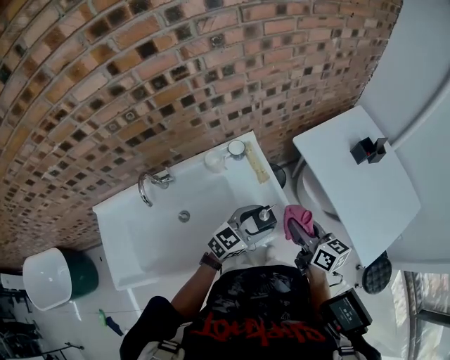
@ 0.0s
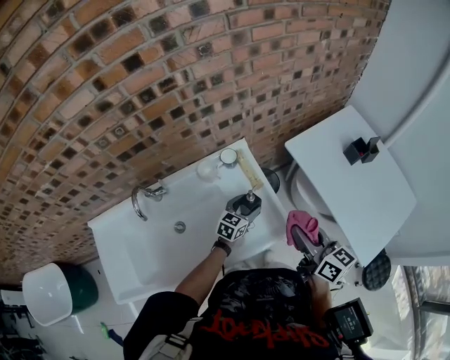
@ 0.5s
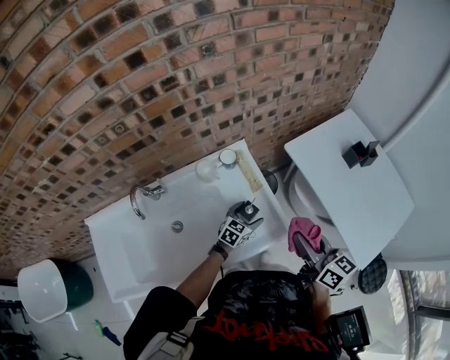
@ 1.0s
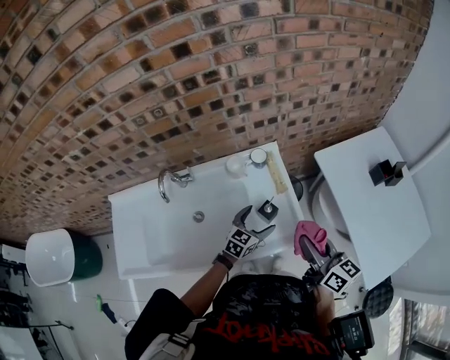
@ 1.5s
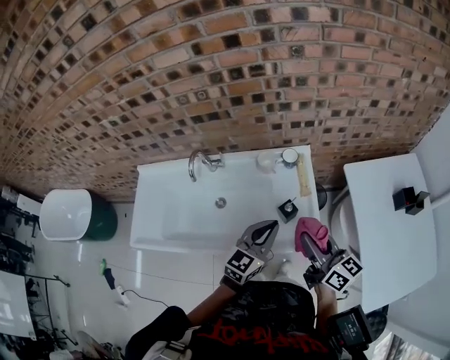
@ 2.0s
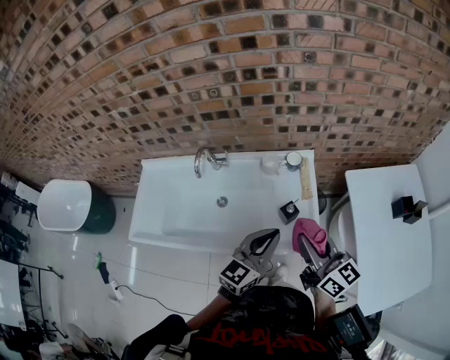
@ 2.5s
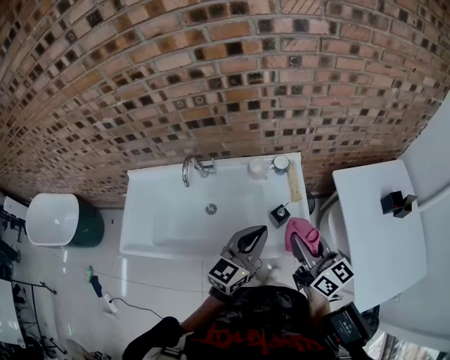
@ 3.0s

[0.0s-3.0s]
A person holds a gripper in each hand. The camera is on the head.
0.0s to 1.5s: The left gripper heads downward and to the left, covering approximately 10 cm, and turns by roughly 30 degrees; the right gripper moves upward, roughly 5 cm.
1.5s to 3.0s: The left gripper shifts some 25 cm upward, swivels some 30 degrees, and closes; the right gripper travels upward and to the left by approximately 10 cm.

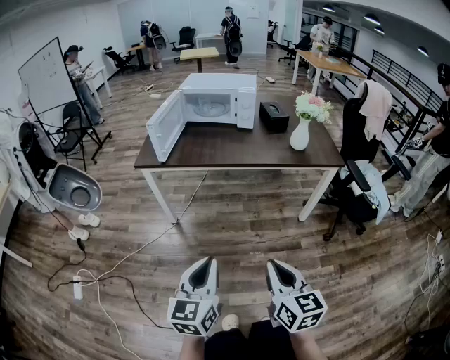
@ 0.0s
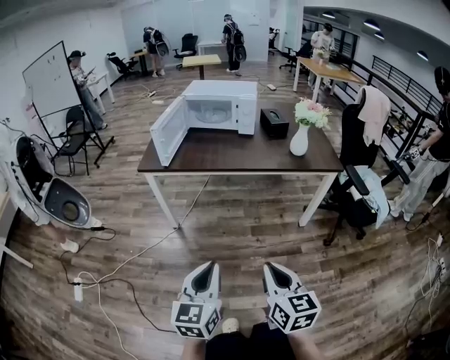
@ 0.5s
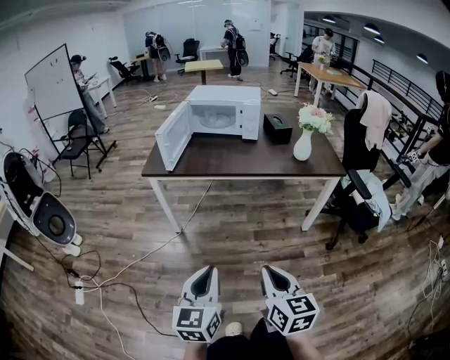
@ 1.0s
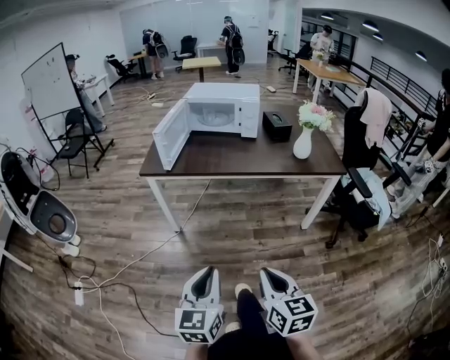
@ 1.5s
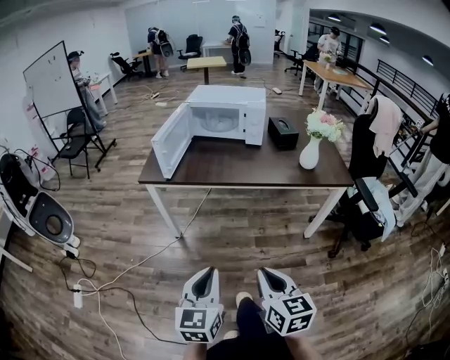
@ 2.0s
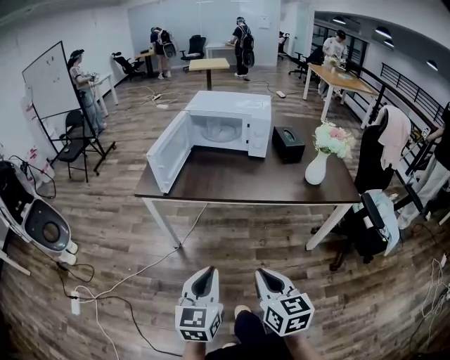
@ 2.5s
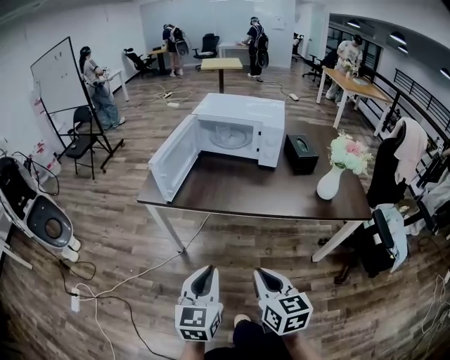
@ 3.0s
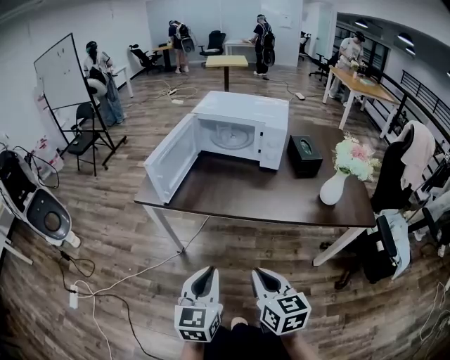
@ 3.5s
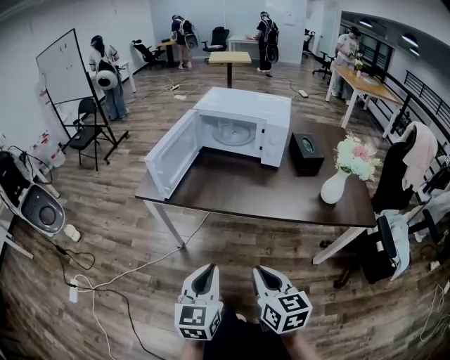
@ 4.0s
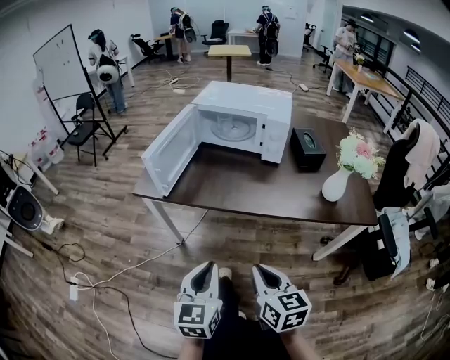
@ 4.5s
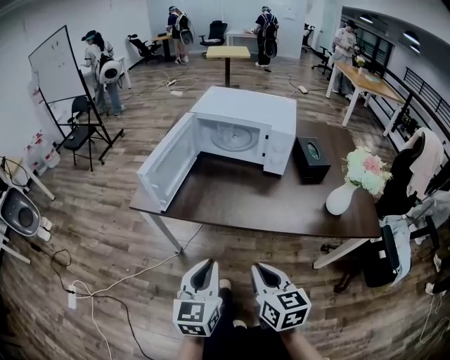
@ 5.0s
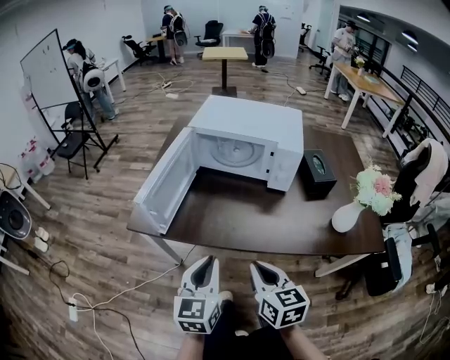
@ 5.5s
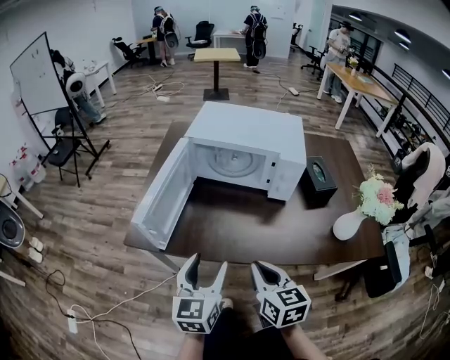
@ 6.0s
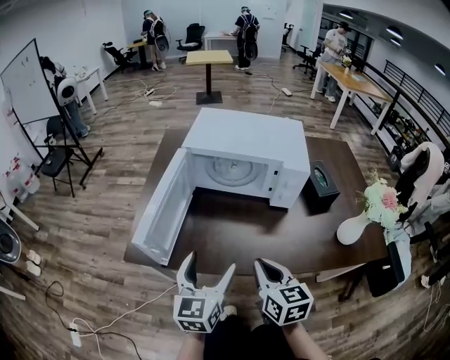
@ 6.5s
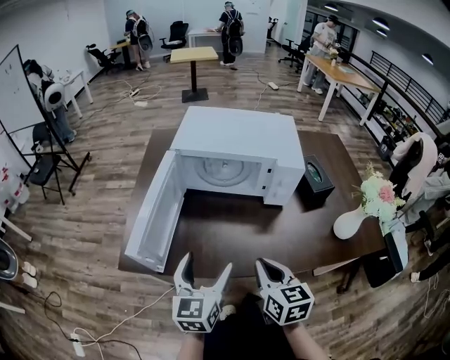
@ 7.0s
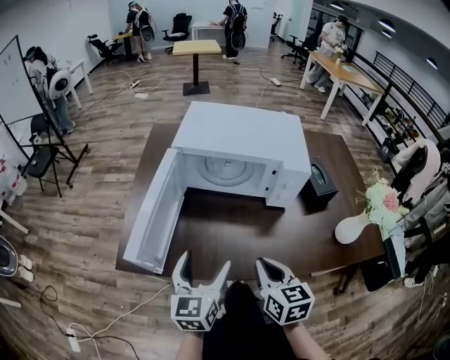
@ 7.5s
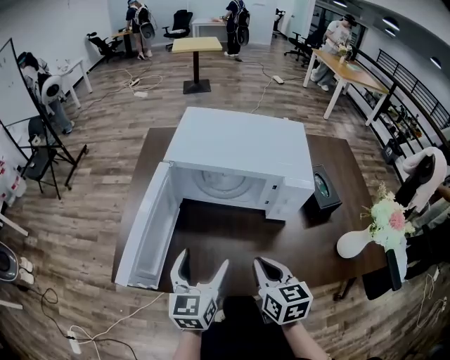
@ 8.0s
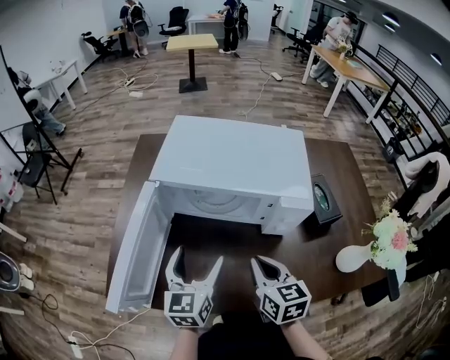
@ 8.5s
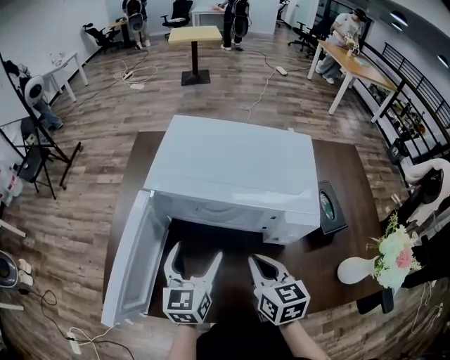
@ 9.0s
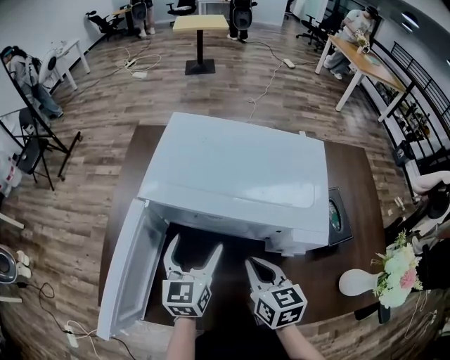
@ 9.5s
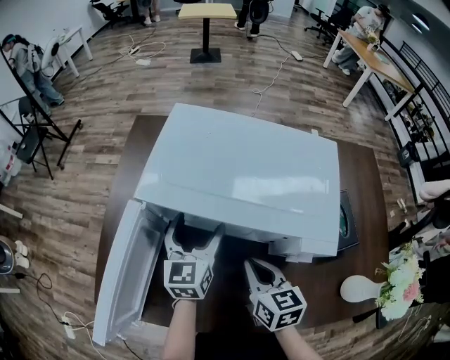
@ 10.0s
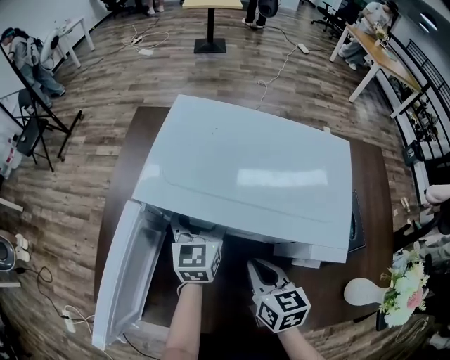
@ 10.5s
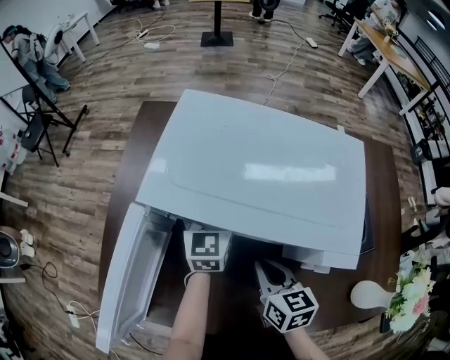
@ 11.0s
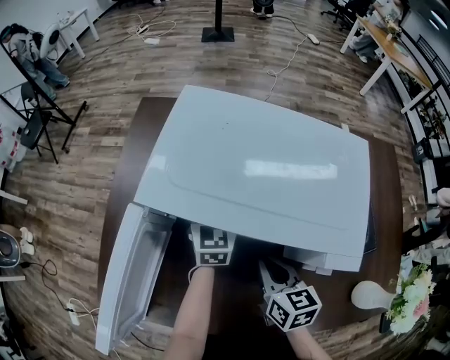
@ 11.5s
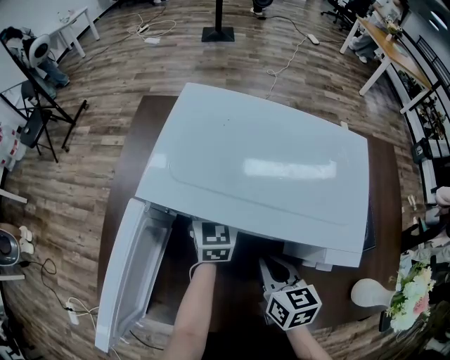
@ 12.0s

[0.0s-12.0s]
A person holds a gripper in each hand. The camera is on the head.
0.0s to 2.0s: The two grippers go about 5 cm forward.
2.0s to 4.0s: Both grippers travel together forward, some 20 cm.
4.0s to 6.0s: The two grippers go about 25 cm forward. The left gripper opens.
6.0s to 8.0s: Both grippers move forward, about 15 cm. The left gripper opens.
8.0s to 10.0s: The grippers both shift forward by some 20 cm.
10.0s to 12.0s: The left gripper travels forward by roughly 10 cm.

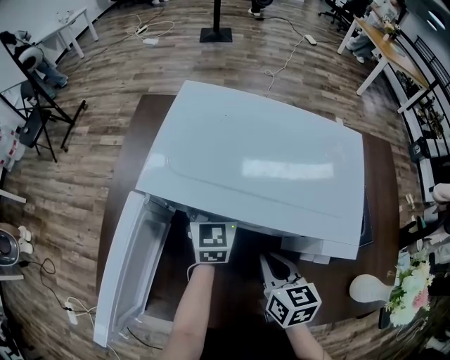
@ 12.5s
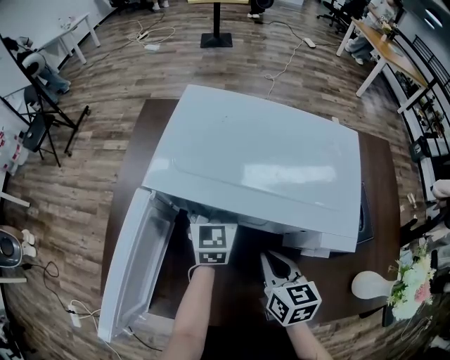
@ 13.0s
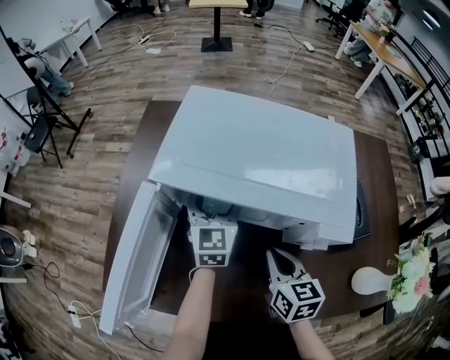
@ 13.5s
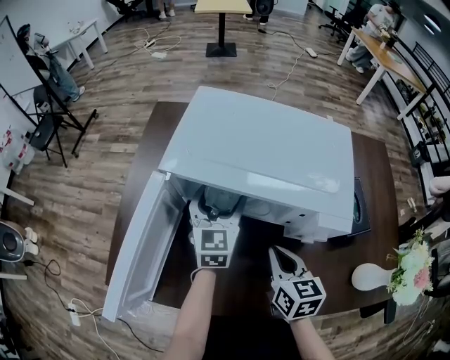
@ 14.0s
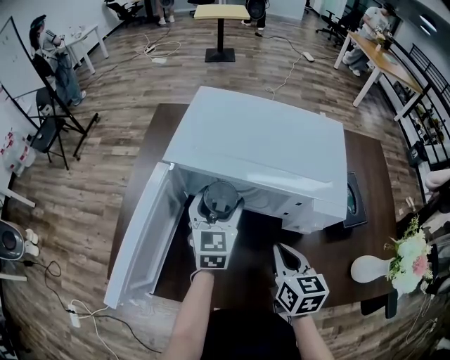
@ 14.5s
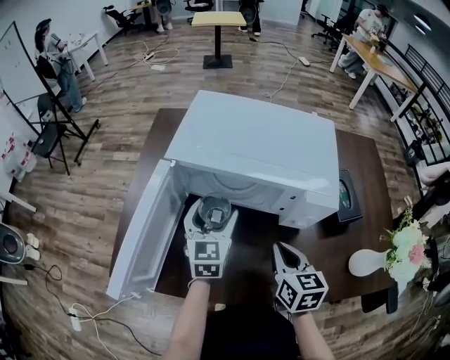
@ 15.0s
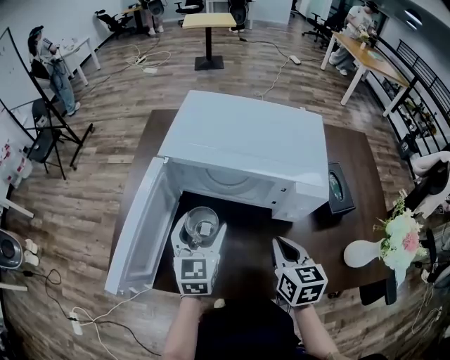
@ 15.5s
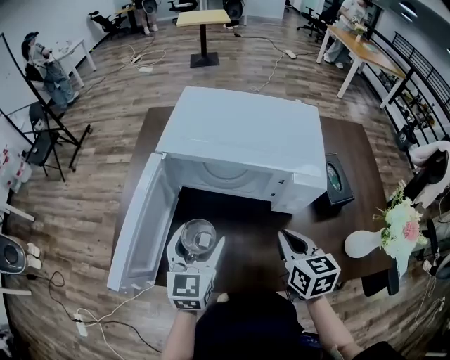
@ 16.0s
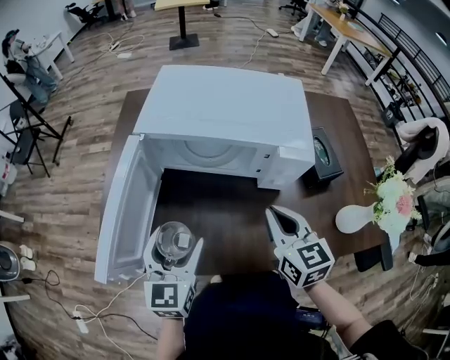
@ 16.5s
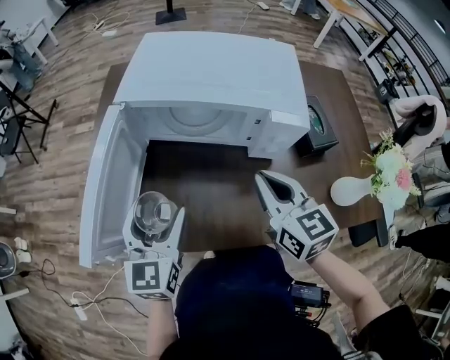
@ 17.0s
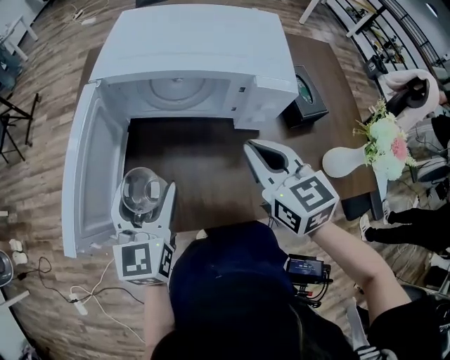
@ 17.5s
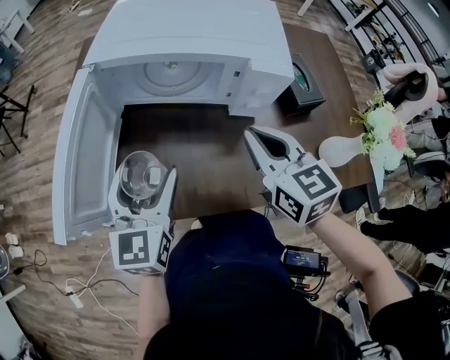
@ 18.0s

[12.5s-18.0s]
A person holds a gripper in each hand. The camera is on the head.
12.5s to 14.5s: The left gripper travels backward by some 10 cm. The right gripper travels backward by about 5 cm.
14.5s to 16.0s: The right gripper shifts by roughly 5 cm, while the left gripper heads backward, covering roughly 15 cm.
16.0s to 18.0s: The grippers stay close to where they were, moving slightly.

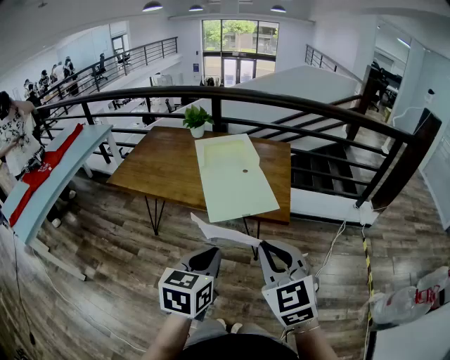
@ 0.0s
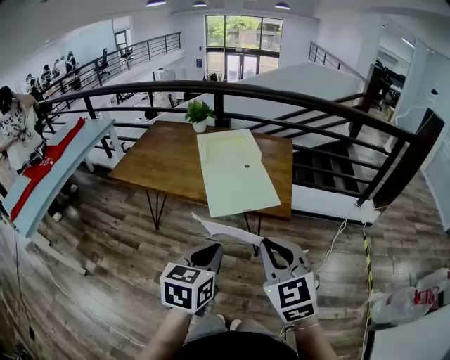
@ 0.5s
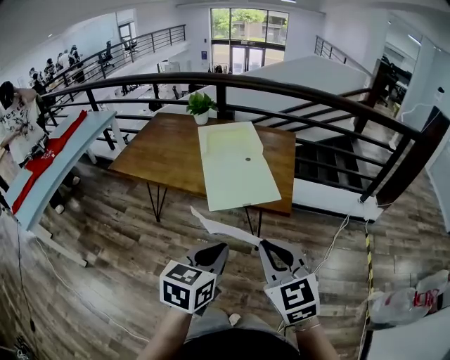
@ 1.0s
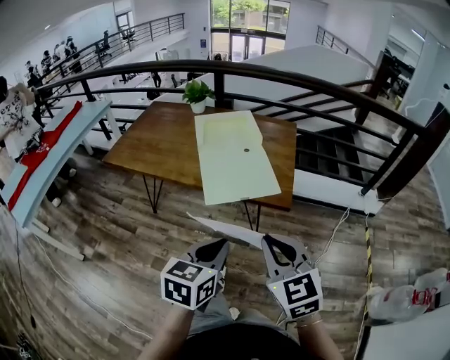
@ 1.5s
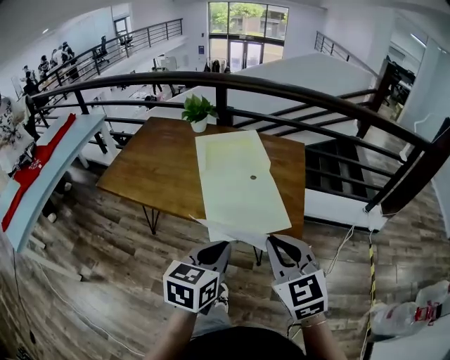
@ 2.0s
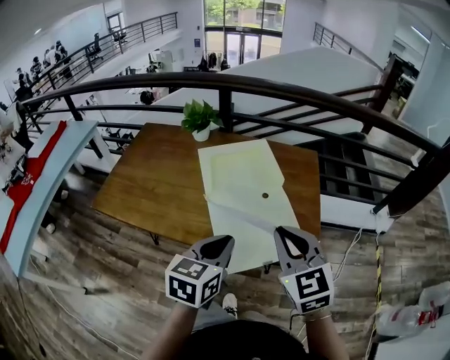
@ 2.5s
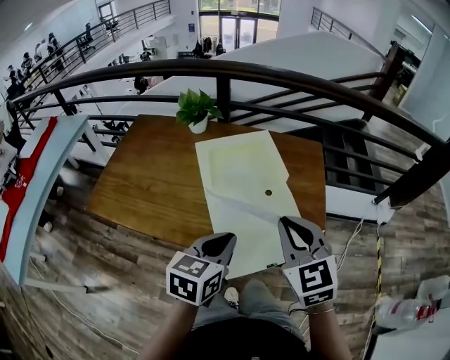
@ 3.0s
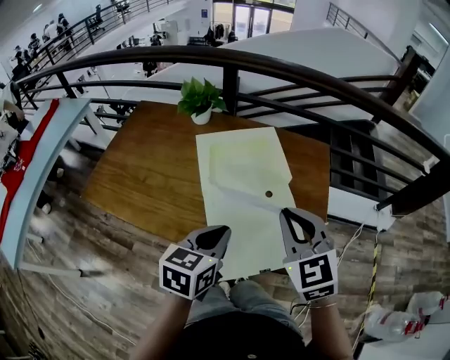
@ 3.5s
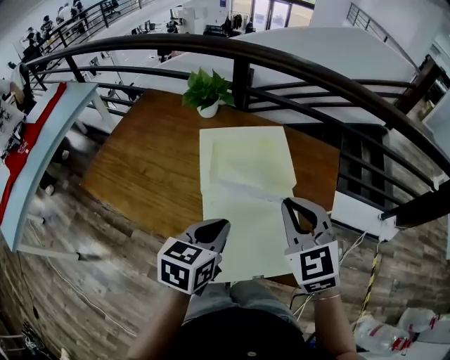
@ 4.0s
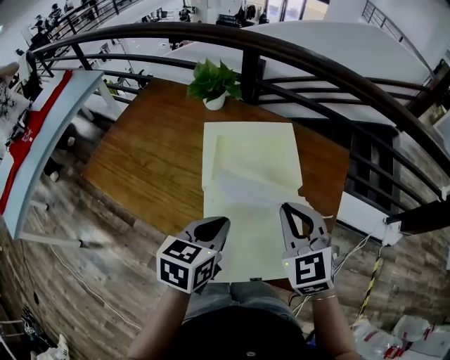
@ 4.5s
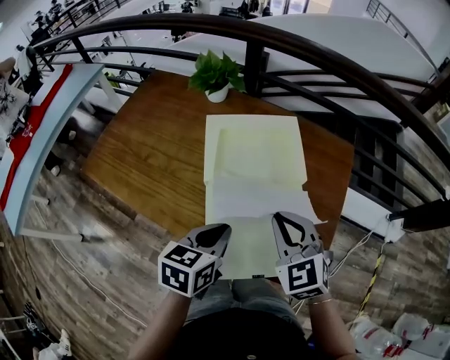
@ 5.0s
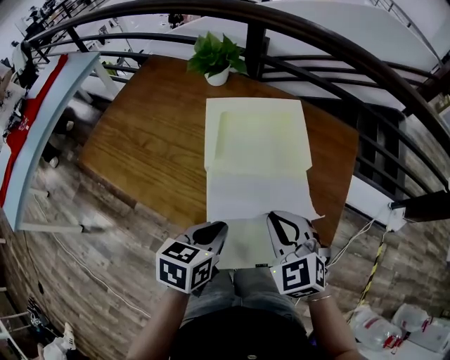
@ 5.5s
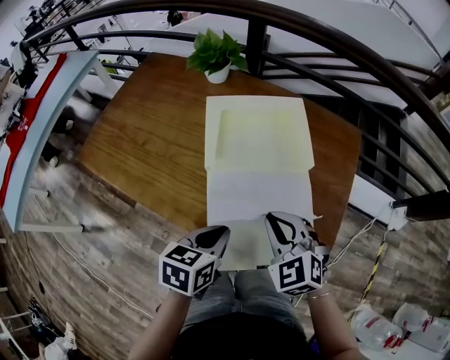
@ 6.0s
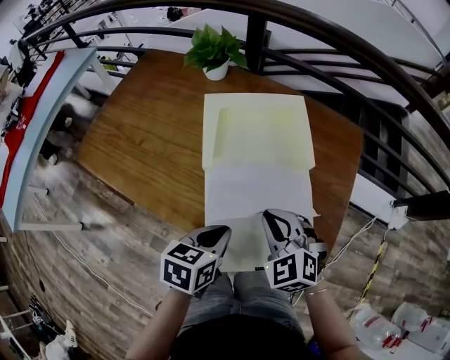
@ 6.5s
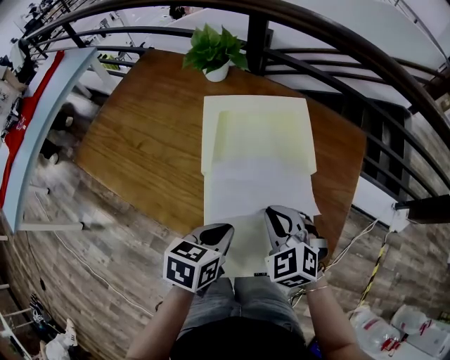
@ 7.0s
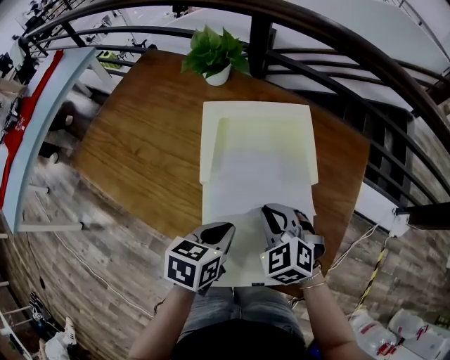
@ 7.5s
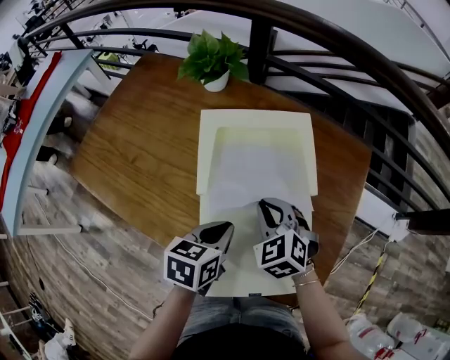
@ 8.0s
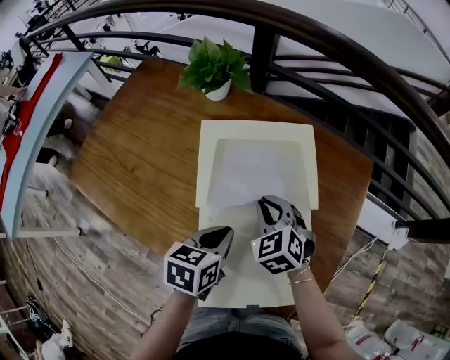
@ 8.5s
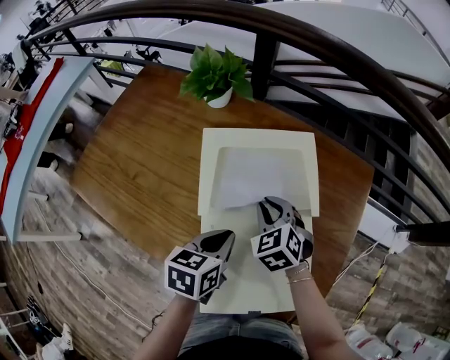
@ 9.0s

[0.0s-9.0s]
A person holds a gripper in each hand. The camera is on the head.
0.0s to 2.0s: Both grippers travel together forward, roughly 15 cm.
2.0s to 4.5s: The two grippers go about 25 cm forward.
4.5s to 7.0s: The grippers both shift downward by roughly 10 cm.
7.0s to 9.0s: The two grippers go approximately 10 cm forward.
